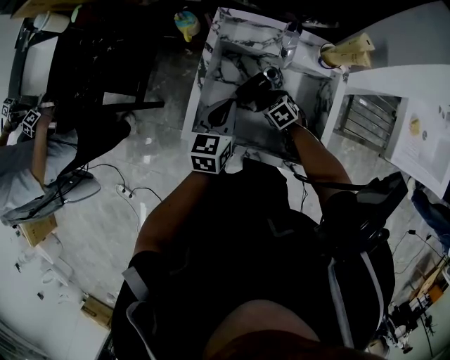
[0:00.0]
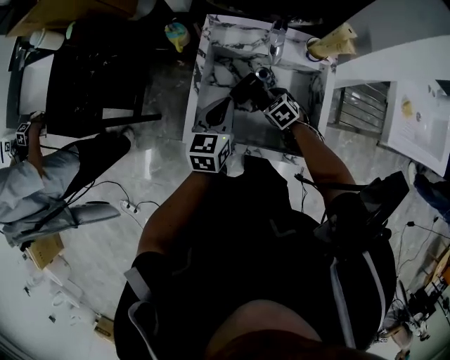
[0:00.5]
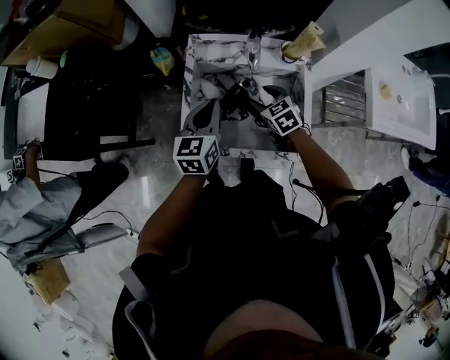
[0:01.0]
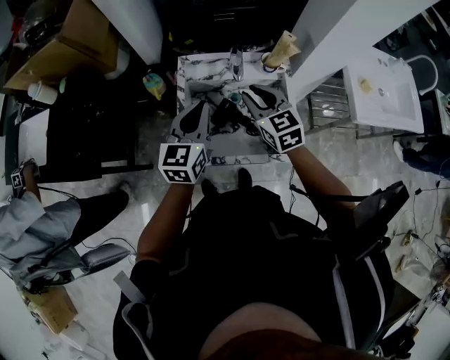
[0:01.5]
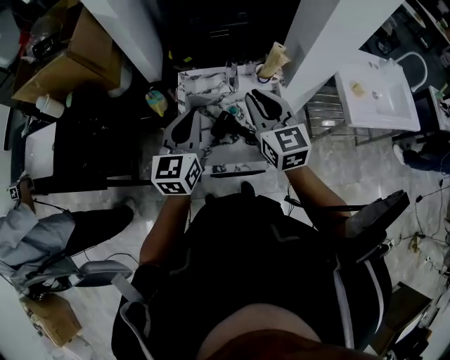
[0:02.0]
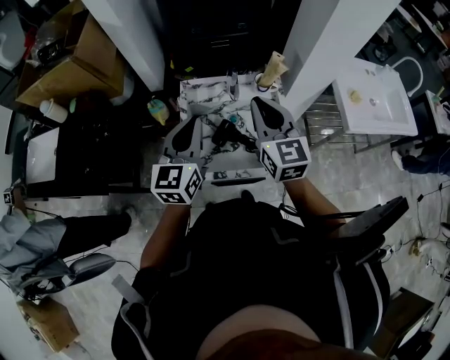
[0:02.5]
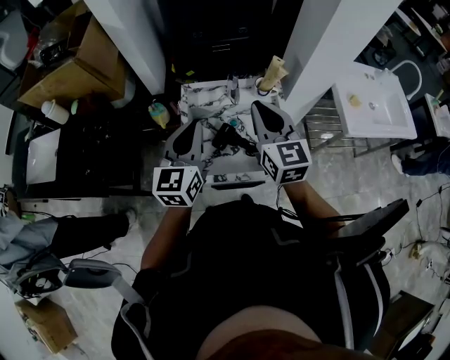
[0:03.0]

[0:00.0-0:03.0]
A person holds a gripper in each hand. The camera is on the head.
0:00.0 to 0:01.5: The left gripper shifts about 15 cm upward, and rotates approximately 20 degrees. Meanwhile the right gripper travels upward by approximately 35 cm, tilts its fingers approximately 40 degrees upward, and closes.
0:01.5 to 0:03.0: The left gripper heads upward, covering some 10 cm. The right gripper heads upward, covering about 15 cm, and turns by approximately 20 degrees.

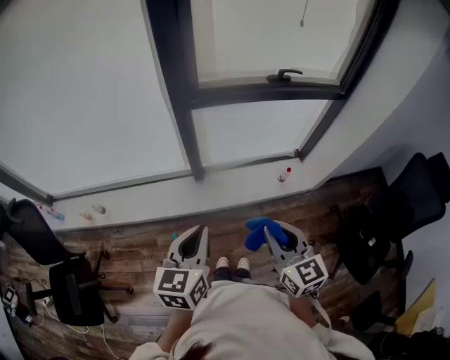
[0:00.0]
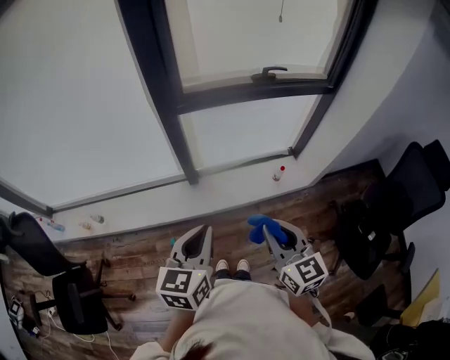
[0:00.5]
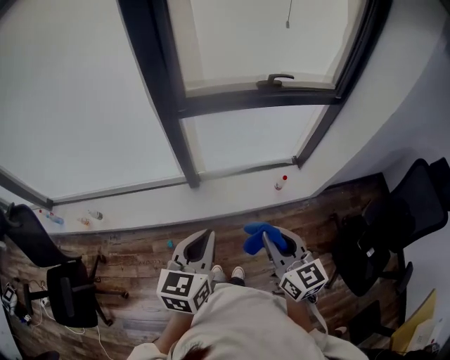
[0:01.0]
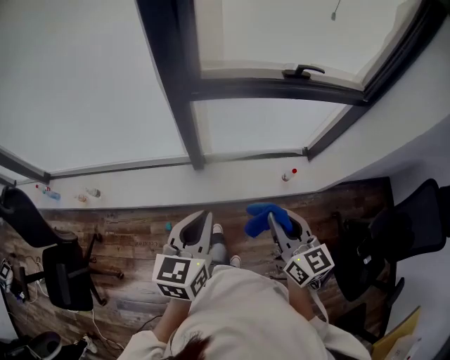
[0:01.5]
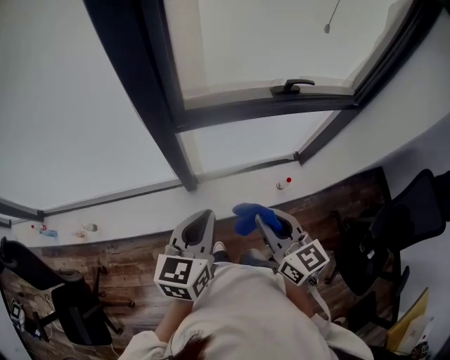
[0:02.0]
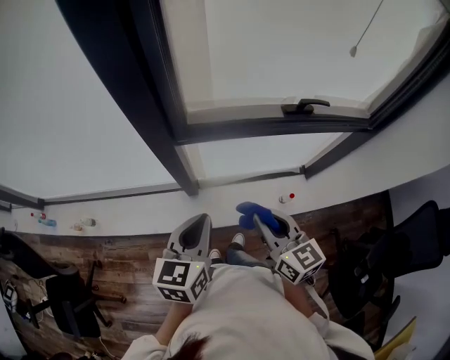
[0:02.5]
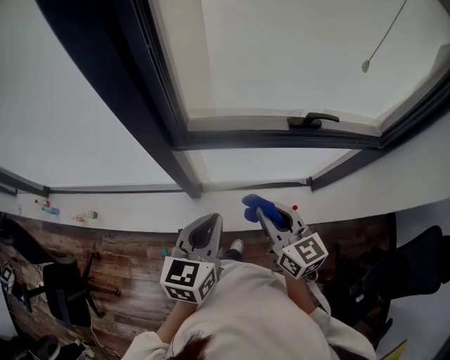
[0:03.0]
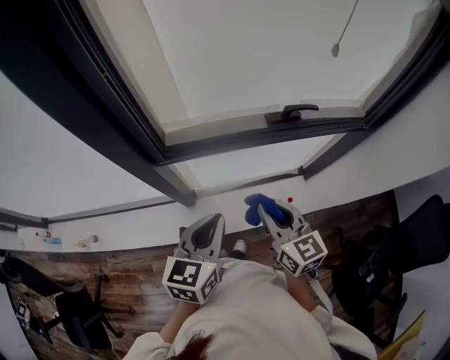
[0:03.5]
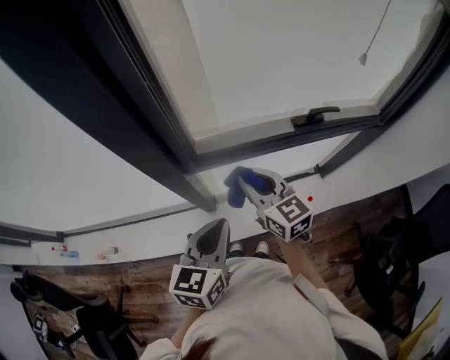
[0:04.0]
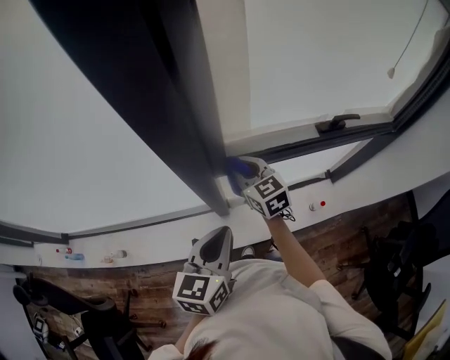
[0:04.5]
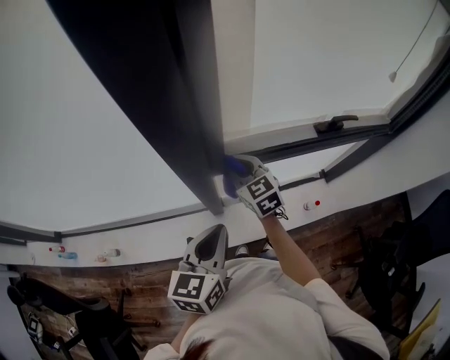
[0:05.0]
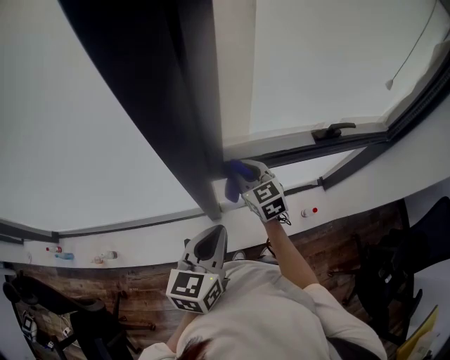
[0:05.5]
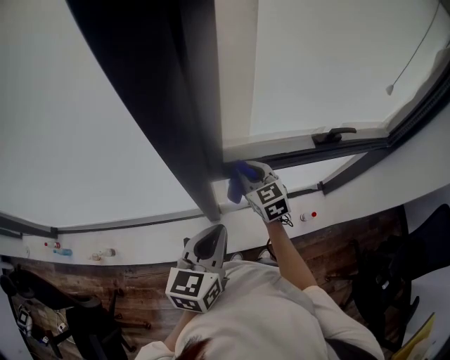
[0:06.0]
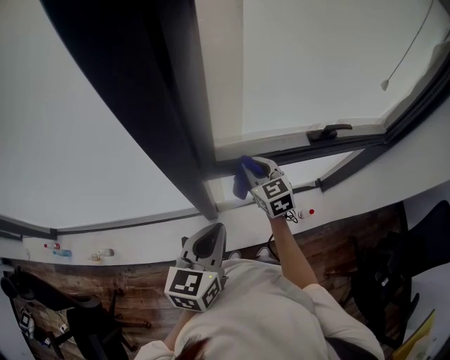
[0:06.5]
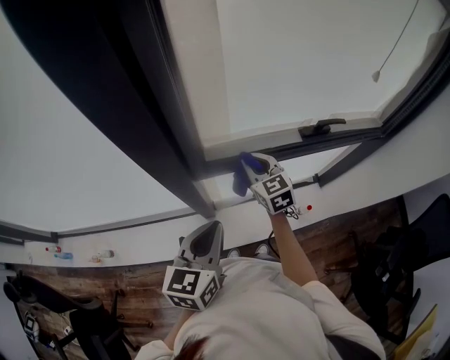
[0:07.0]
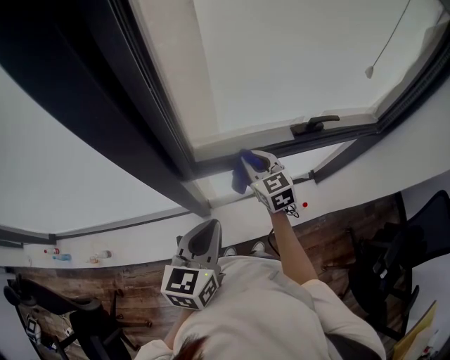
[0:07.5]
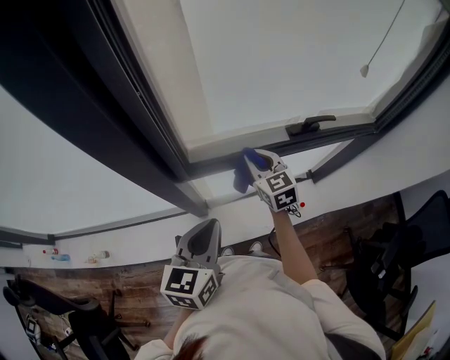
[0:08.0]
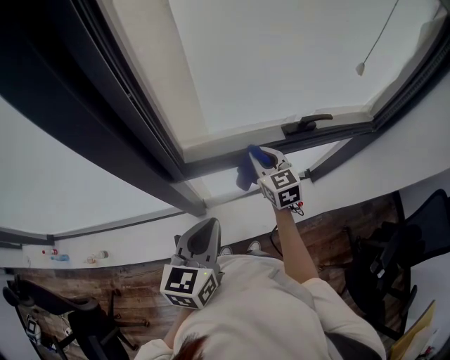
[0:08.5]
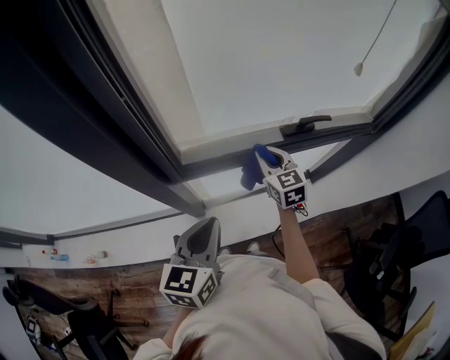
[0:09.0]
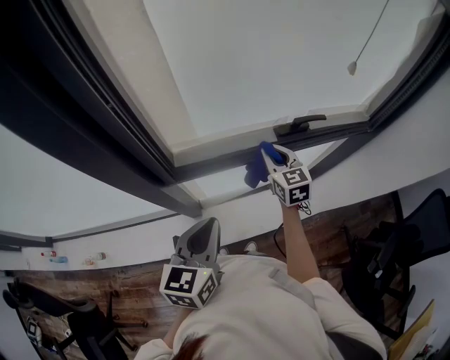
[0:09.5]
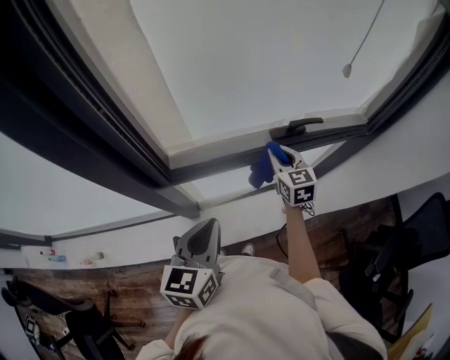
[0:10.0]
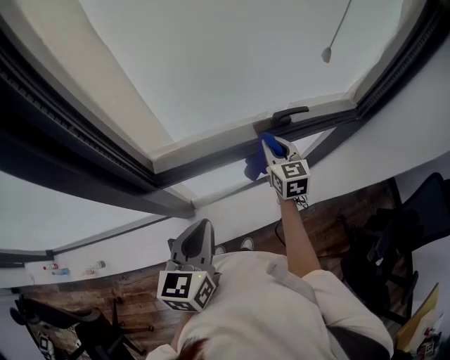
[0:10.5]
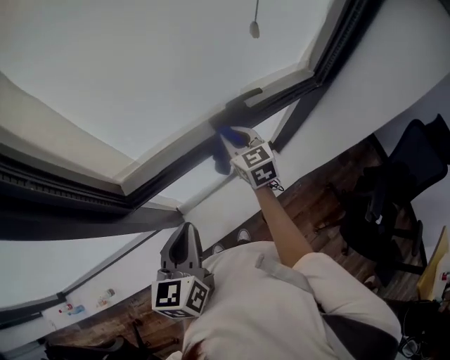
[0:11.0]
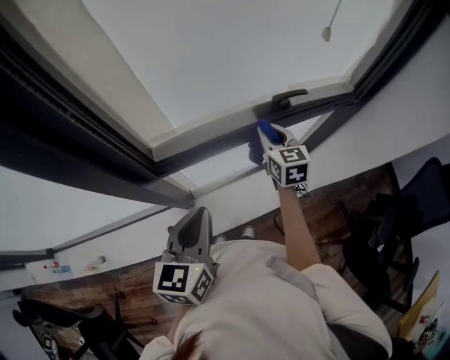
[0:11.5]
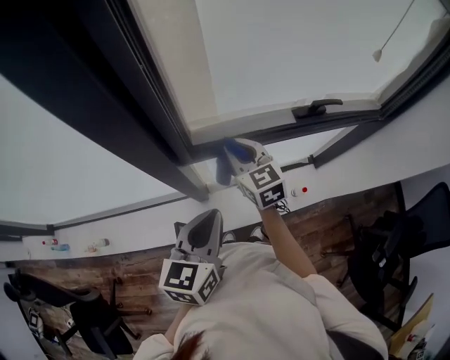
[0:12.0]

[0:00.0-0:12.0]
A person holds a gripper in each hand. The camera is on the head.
0:00.0 to 0:02.0: Both grippers travel together forward, approximately 20 cm.
0:02.0 to 0:04.0: The left gripper shifts roughly 15 cm forward, while the right gripper heads forward, covering some 25 cm.
0:04.0 to 0:06.0: The left gripper is displaced to the left by roughly 5 cm. Meanwhile the right gripper shifts about 15 cm forward, downward and to the left.
0:06.0 to 0:08.0: The left gripper moves to the right, roughly 5 cm. The right gripper travels to the right by roughly 10 cm.
0:08.0 to 0:10.0: The left gripper goes approximately 5 cm to the right, while the right gripper heads to the right, covering roughly 15 cm.
0:10.0 to 0:12.0: The left gripper heads to the left, covering about 5 cm. The right gripper heads to the left, covering roughly 20 cm.

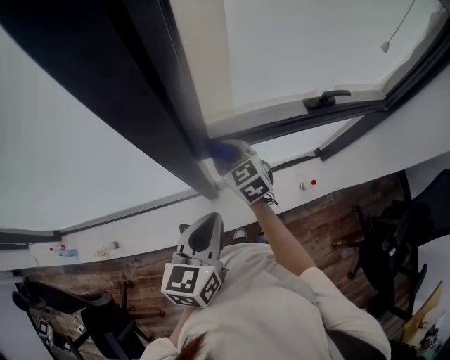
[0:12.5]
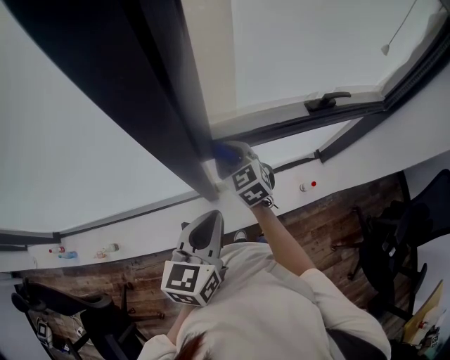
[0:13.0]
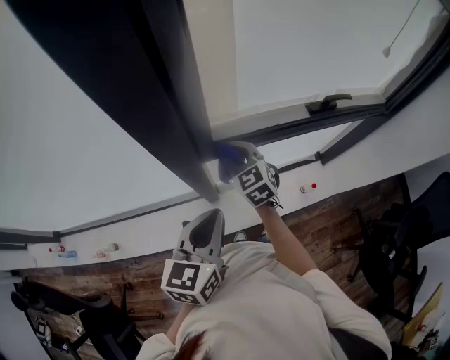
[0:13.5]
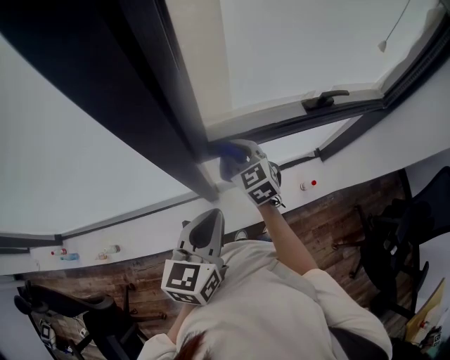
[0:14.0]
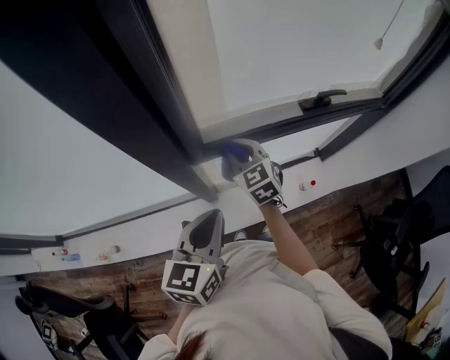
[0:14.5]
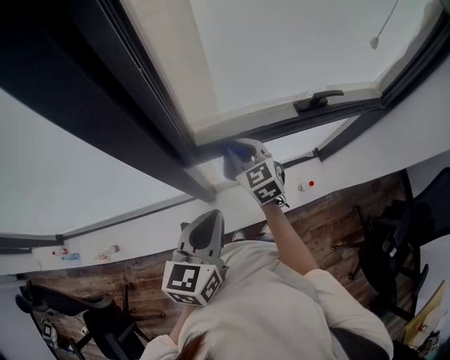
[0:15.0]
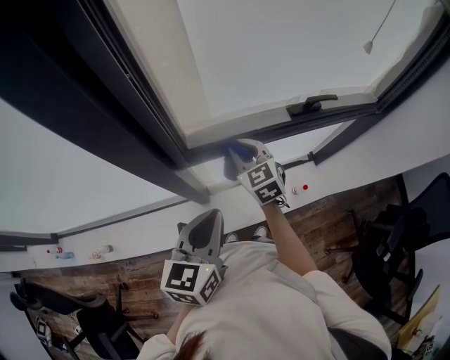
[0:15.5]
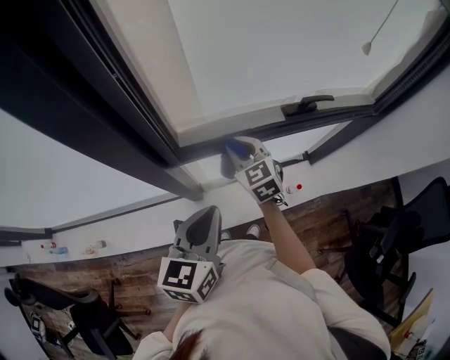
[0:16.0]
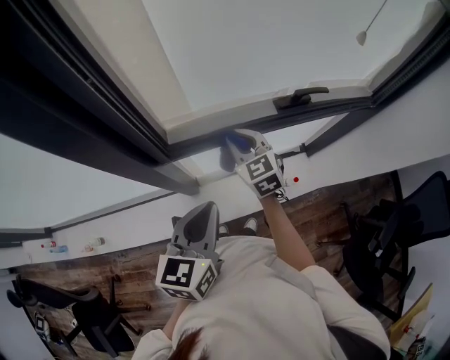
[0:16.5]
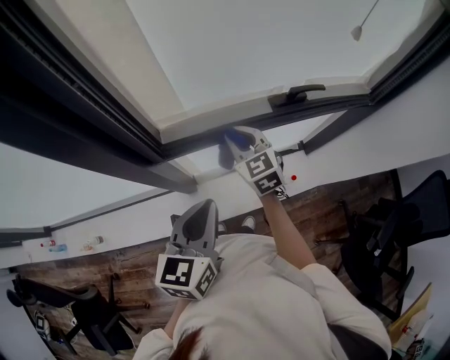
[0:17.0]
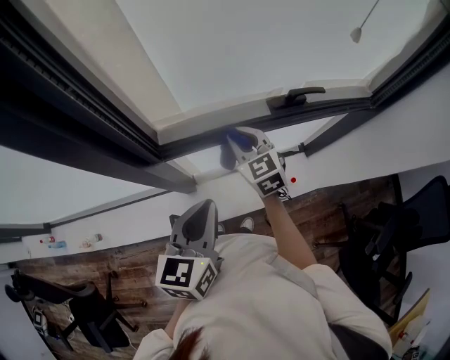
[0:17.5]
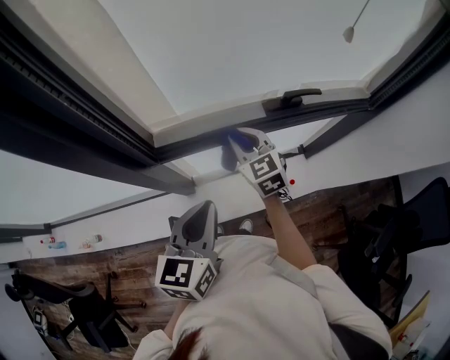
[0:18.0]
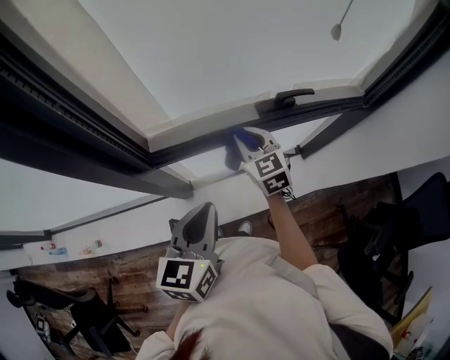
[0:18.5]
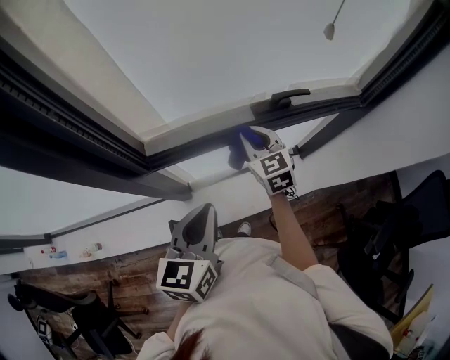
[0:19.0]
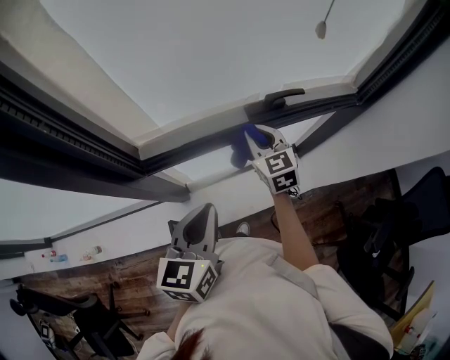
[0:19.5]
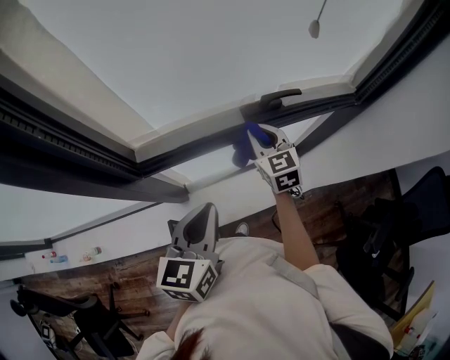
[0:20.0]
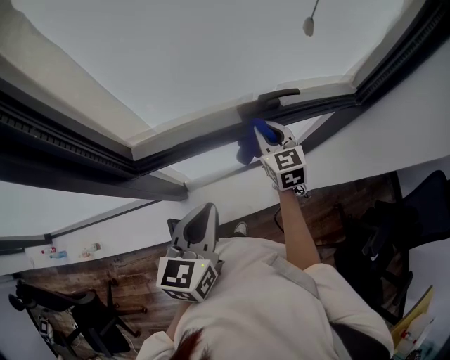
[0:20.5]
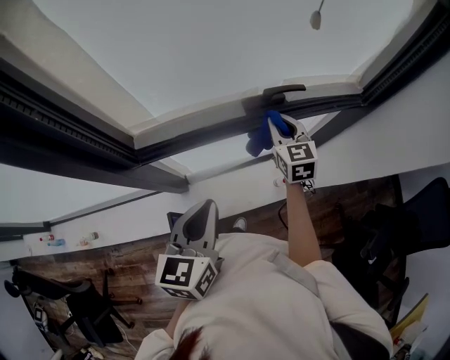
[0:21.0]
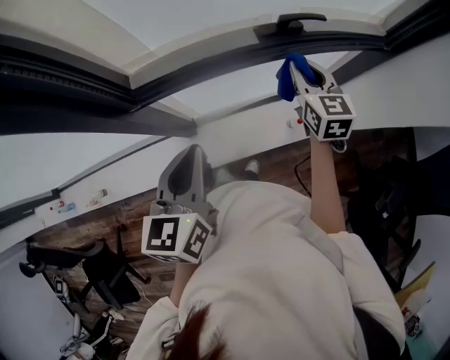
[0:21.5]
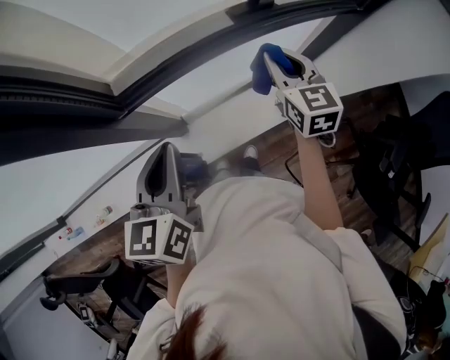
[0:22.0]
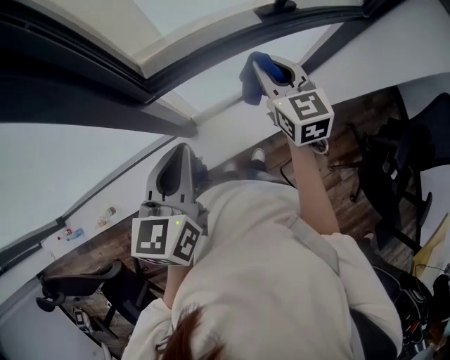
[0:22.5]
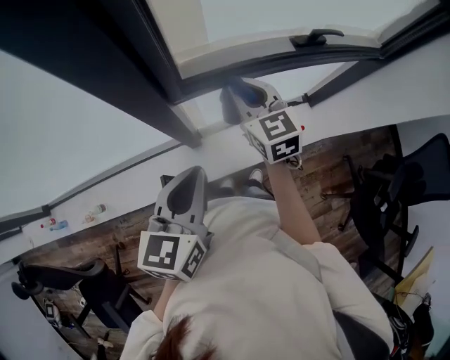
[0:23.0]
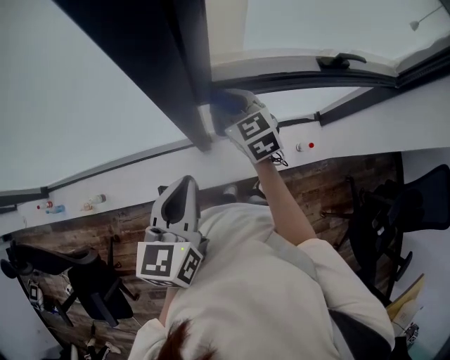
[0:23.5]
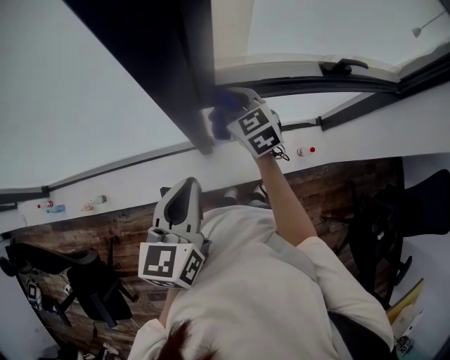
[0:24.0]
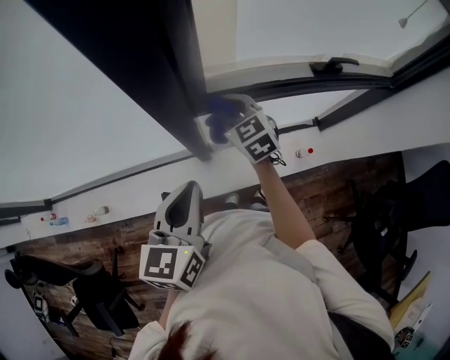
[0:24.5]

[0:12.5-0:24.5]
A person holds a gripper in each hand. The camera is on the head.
0:12.5 to 0:14.5: The right gripper goes about 5 cm to the right.
0:14.5 to 0:16.5: The grippers both shift to the right by about 10 cm.
0:16.5 to 0:18.5: The left gripper heads to the right, covering some 5 cm; the right gripper shifts about 10 cm to the right.
0:18.5 to 0:20.5: The right gripper moves to the right, roughly 10 cm. The left gripper shifts by approximately 5 cm.
0:20.5 to 0:22.5: The right gripper heads backward and to the left, covering about 15 cm, while the left gripper travels to the left by approximately 15 cm.
0:22.5 to 0:24.5: The right gripper moves to the left, some 20 cm, and swivels some 30 degrees. Meanwhile the left gripper is displaced to the left by roughly 10 cm.
